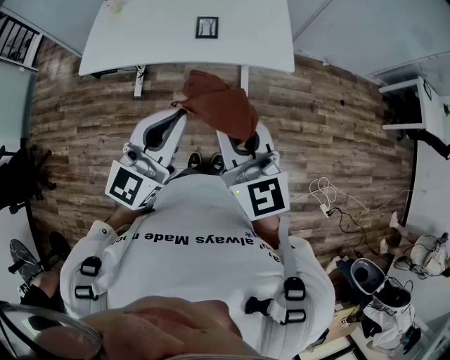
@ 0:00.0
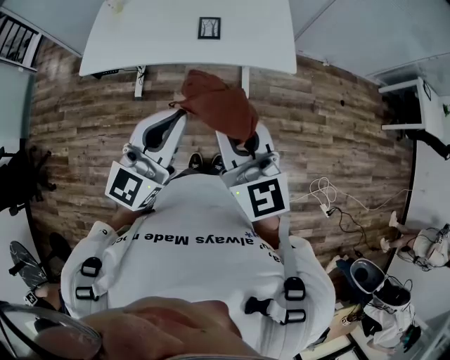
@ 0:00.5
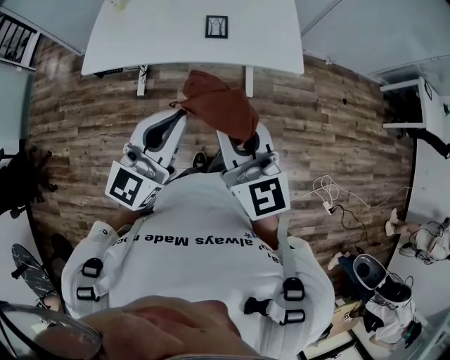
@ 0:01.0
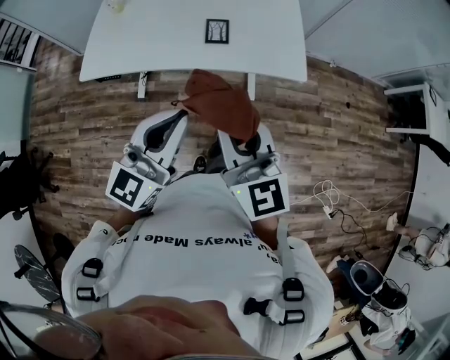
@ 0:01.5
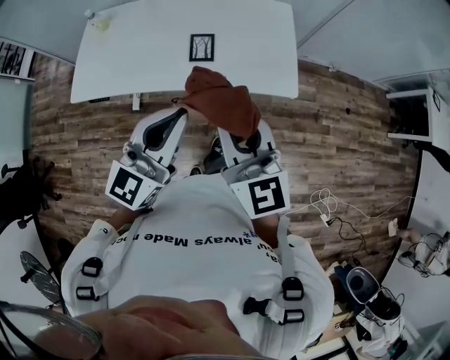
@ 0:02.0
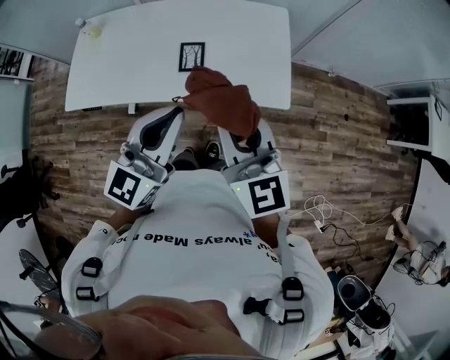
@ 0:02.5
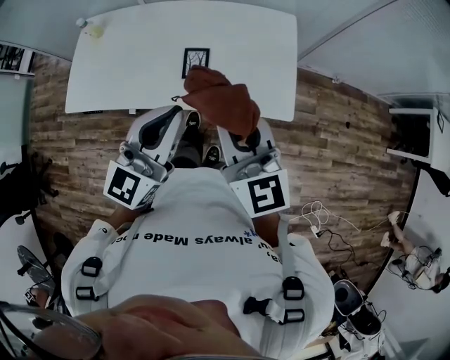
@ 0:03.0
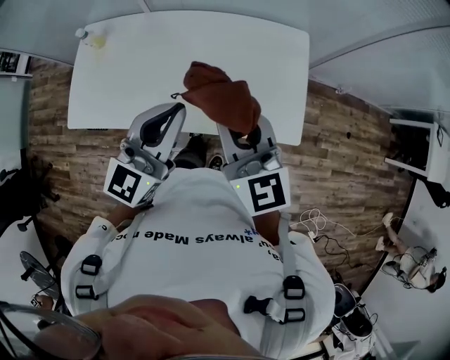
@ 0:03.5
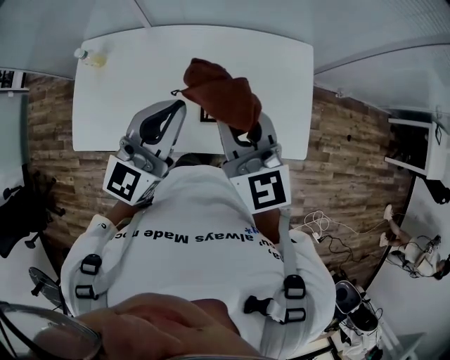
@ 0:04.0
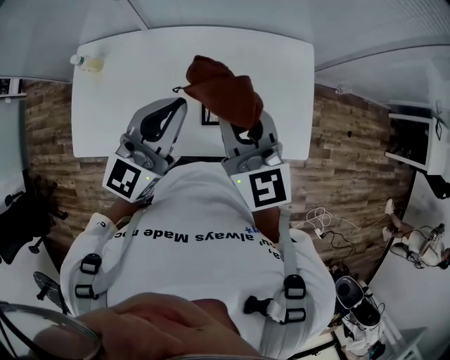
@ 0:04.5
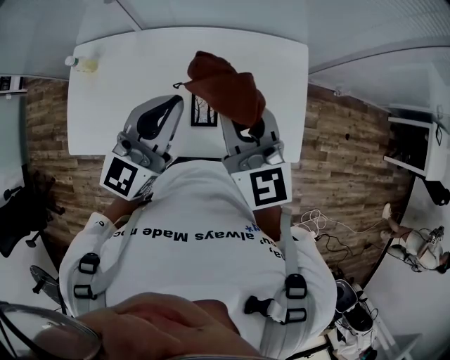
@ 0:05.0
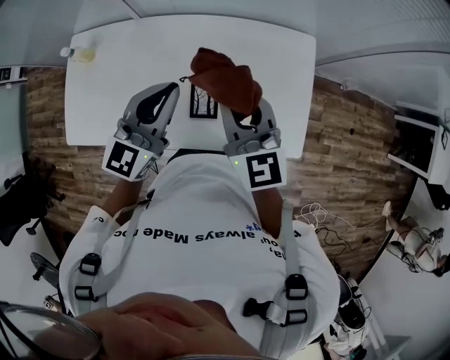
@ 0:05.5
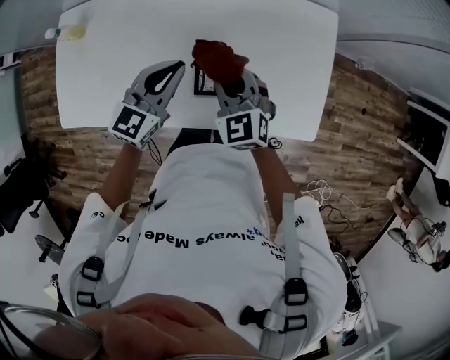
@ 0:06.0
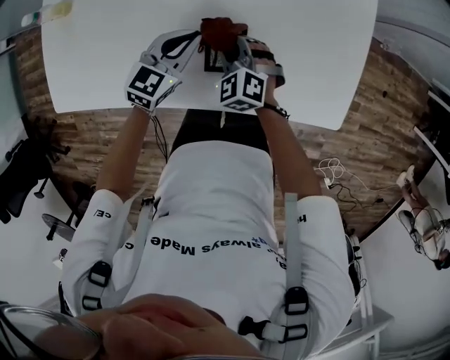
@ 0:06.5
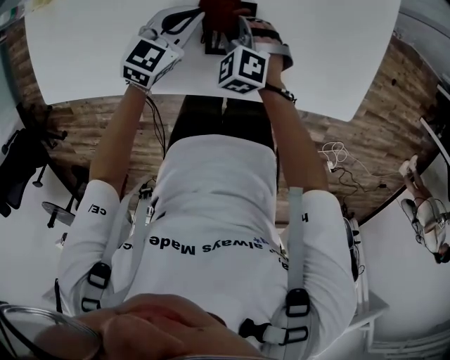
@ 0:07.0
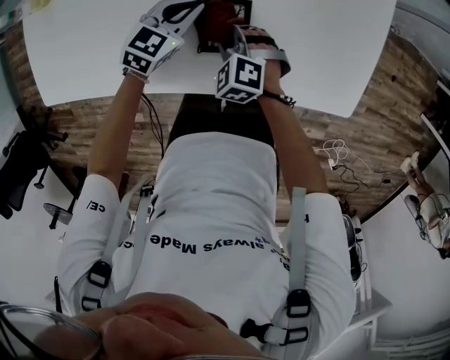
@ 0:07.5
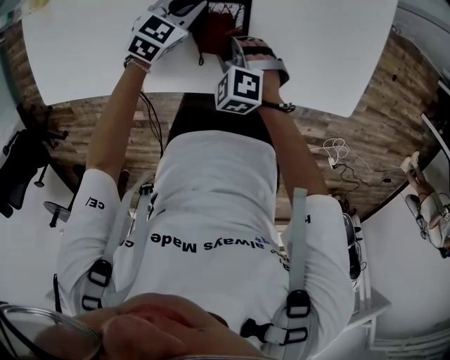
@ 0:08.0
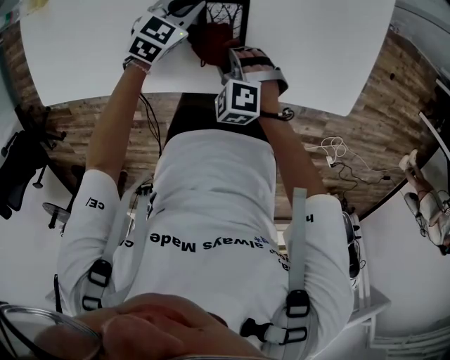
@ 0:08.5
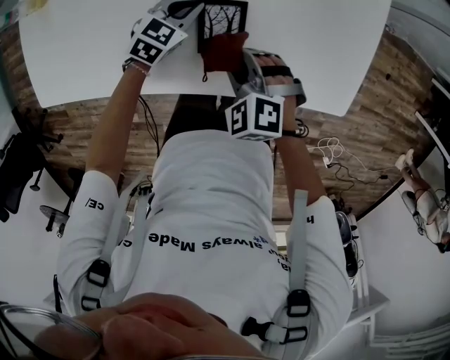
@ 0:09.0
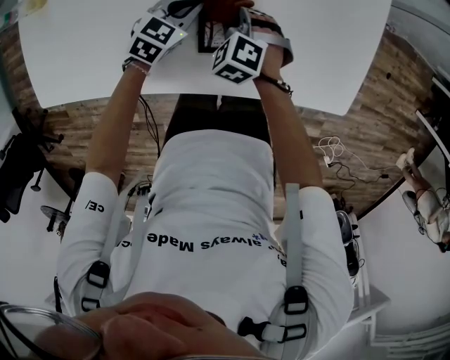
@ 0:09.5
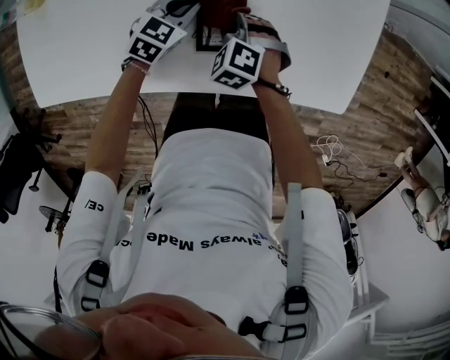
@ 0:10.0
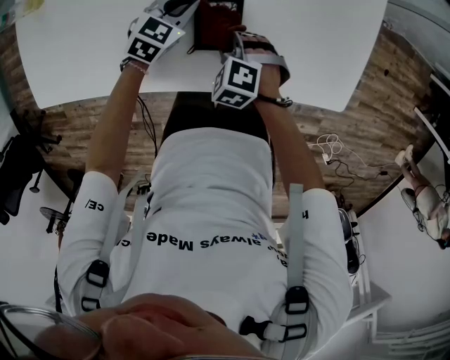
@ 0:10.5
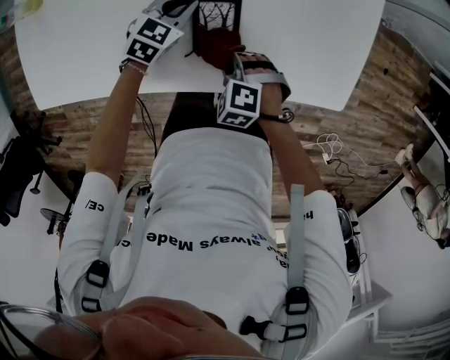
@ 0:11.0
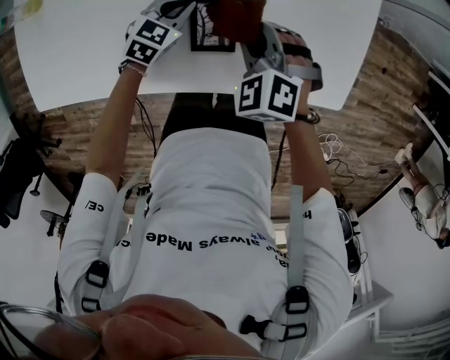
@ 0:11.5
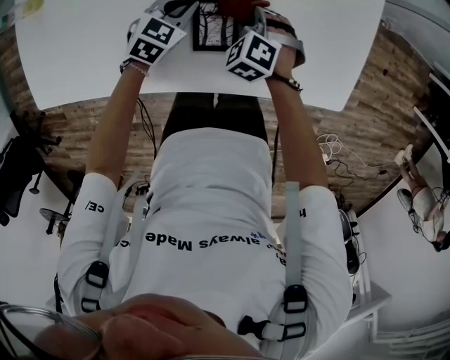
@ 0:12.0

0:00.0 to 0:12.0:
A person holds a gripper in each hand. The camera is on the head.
0:00.0 to 0:02.0: The grippers both shift forward by some 15 cm.
0:02.0 to 0:04.0: The two grippers go roughly 30 cm forward.
0:04.0 to 0:06.0: Both grippers travel together downward, about 20 cm. The right gripper swivels some 30 degrees, while the left gripper rotates about 20 degrees.
0:06.0 to 0:08.0: The right gripper moves downward and backward, about 25 cm, and tips its fingers downward by roughly 30 degrees, while the left gripper goes about 25 cm downward, and changes its angle by about 30 degrees.
0:08.0 to 0:10.0: The right gripper shifts roughly 5 cm forward.
0:10.0 to 0:12.0: The right gripper goes backward and returns, some 10 cm each way.

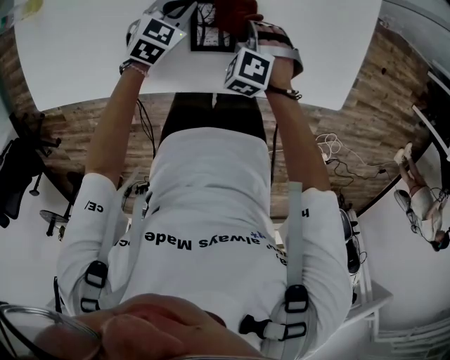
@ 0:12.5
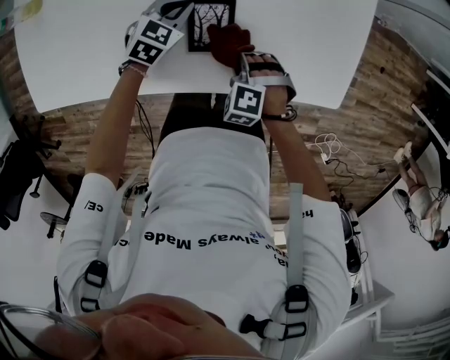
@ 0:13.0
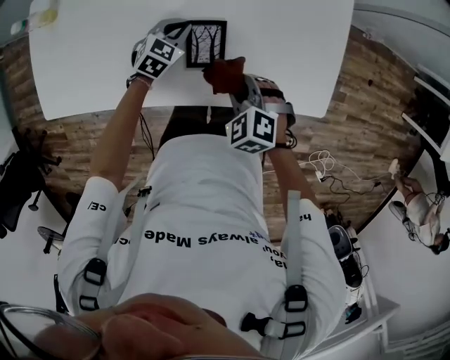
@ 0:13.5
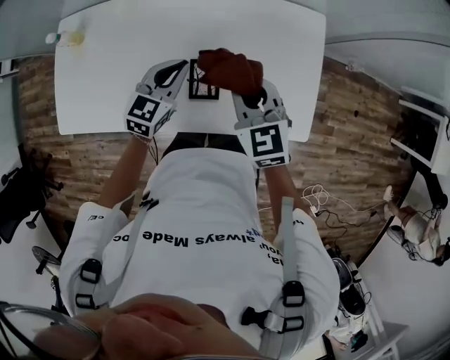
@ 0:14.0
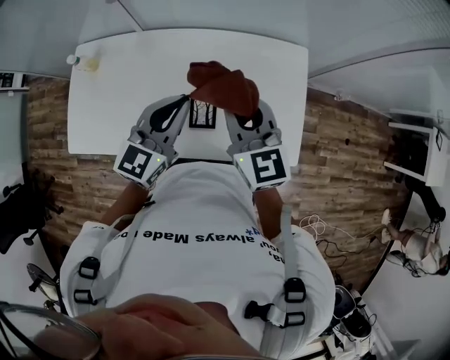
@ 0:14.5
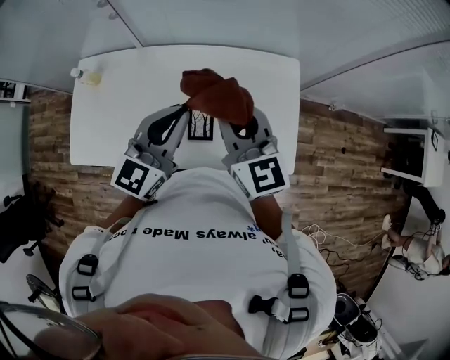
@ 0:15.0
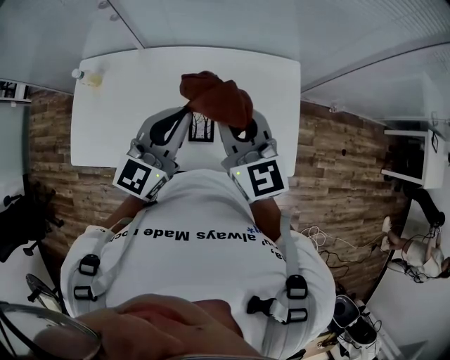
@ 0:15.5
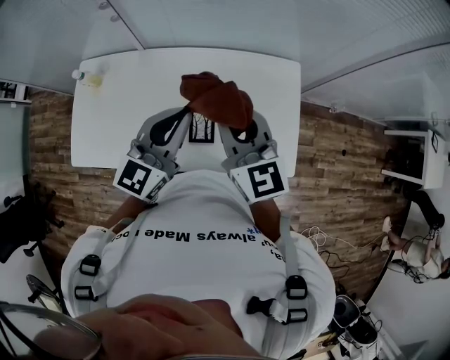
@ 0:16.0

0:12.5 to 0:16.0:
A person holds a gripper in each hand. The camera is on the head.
0:12.5 to 0:14.5: The grippers both shift upward by about 40 cm. The right gripper tilts its fingers roughly 60 degrees upward; the left gripper tilts its fingers approximately 40 degrees upward.
0:14.5 to 0:16.0: The grippers move only a little.

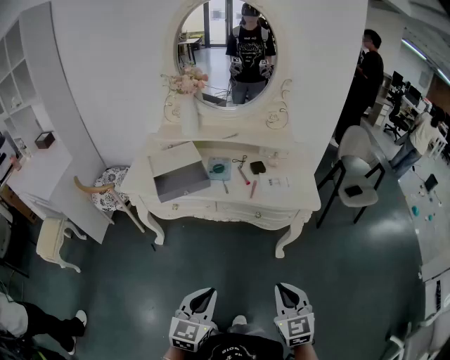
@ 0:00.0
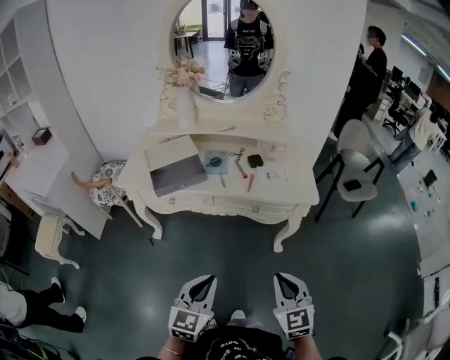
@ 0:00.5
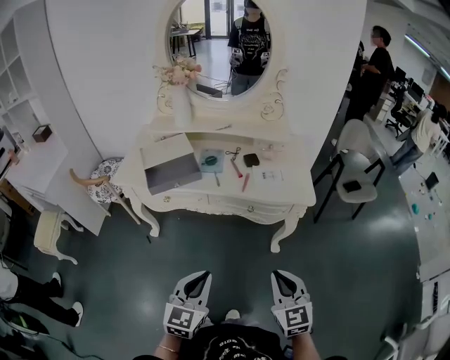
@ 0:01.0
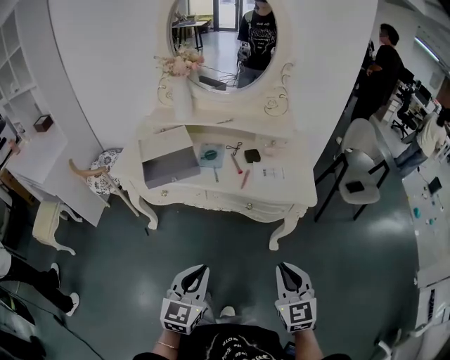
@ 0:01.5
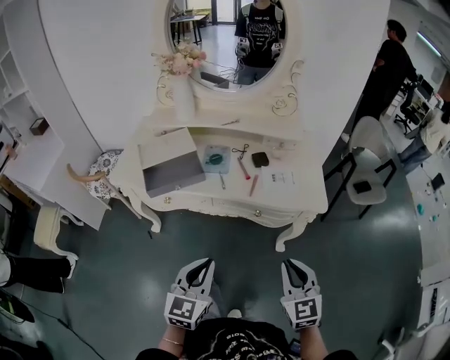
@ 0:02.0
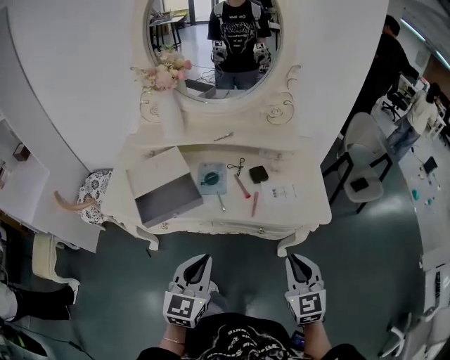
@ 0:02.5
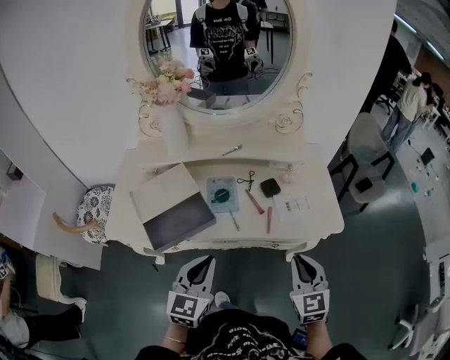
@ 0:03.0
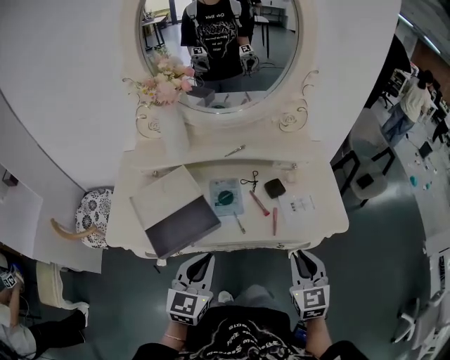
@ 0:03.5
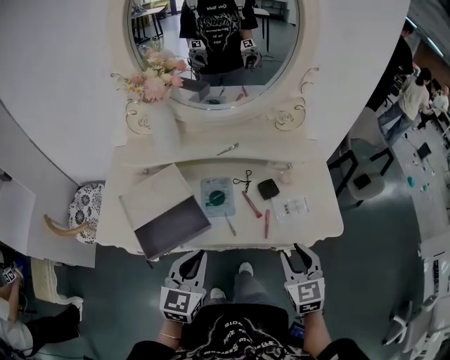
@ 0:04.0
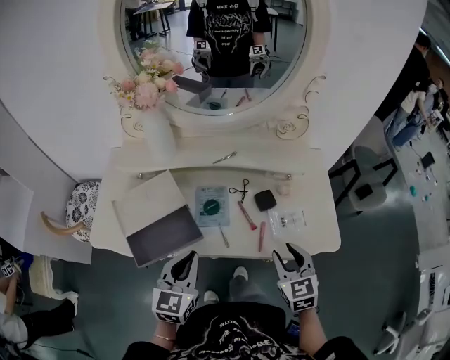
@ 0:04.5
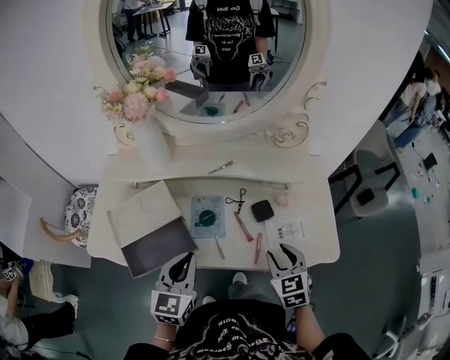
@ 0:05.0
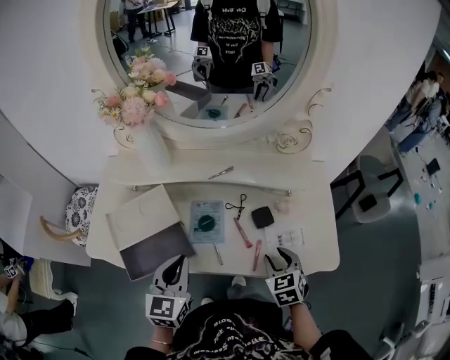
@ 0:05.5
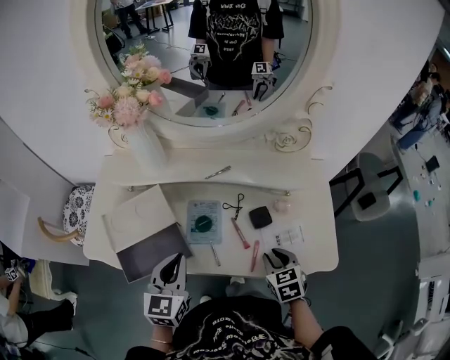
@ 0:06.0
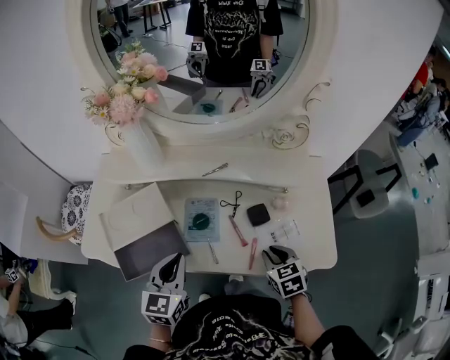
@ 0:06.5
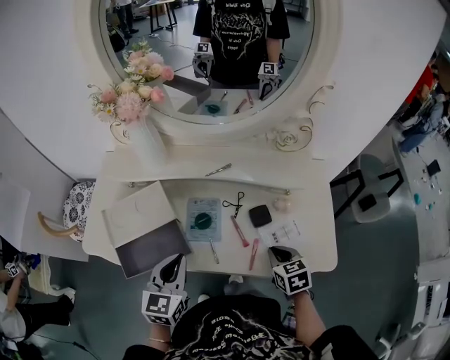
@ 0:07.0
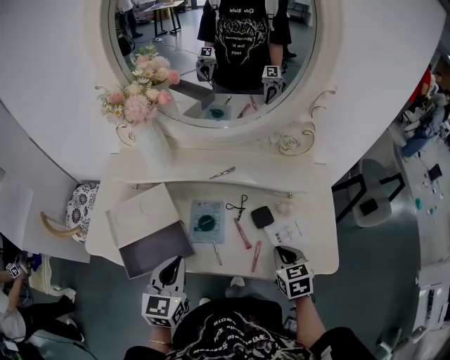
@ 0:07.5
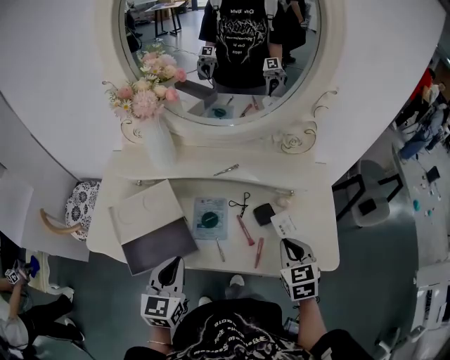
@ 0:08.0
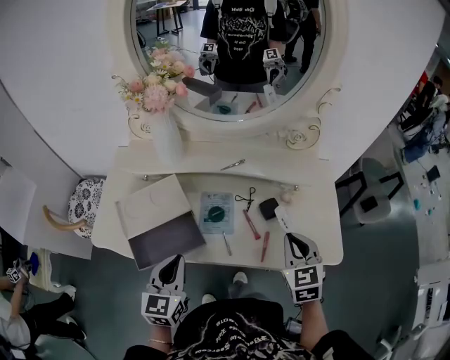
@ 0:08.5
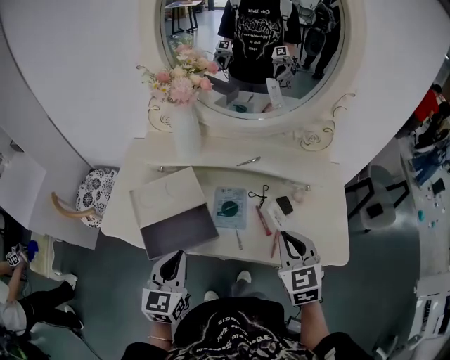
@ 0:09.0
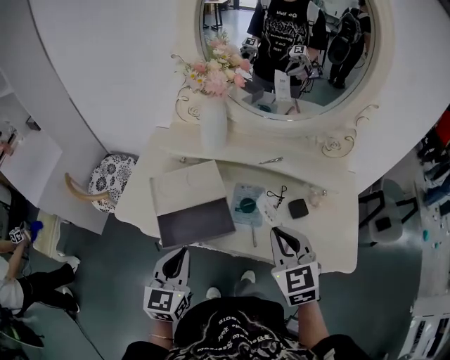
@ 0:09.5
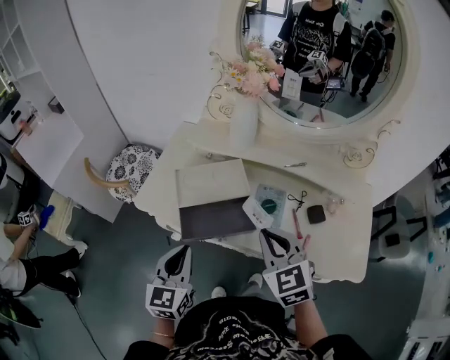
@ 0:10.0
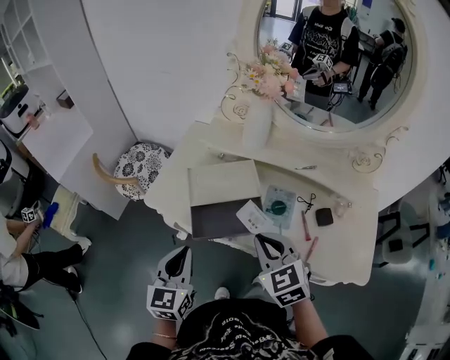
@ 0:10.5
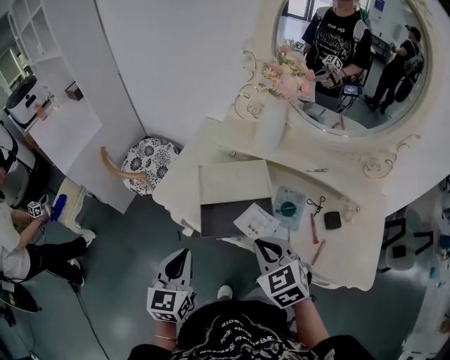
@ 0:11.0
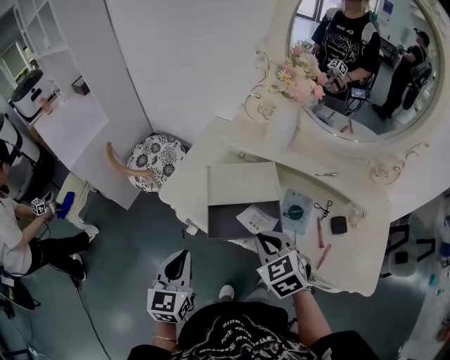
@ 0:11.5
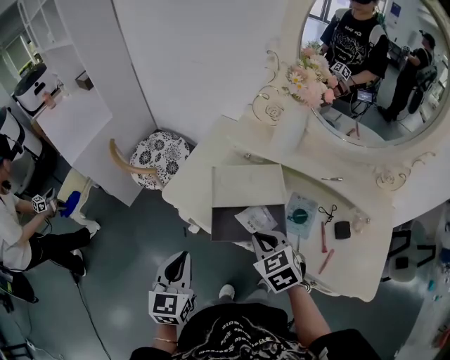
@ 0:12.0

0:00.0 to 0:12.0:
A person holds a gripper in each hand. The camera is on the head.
0:00.0 to 0:02.0: Both grippers move forward, approximately 15 cm.
0:02.0 to 0:04.0: Both grippers travel together forward and to the left, about 20 cm. The right gripper opens.
0:04.0 to 0:06.0: The left gripper is displaced forward by about 10 cm; the right gripper heads forward and downward, covering approximately 15 cm, and swivels approximately 20 degrees.
0:06.0 to 0:08.0: The right gripper travels upward by some 10 cm, and closes up.
0:08.0 to 0:10.0: The left gripper goes roughly 15 cm to the left and backward; the right gripper moves to the left, about 25 cm, and rotates about 30 degrees.
0:10.0 to 0:12.0: The right gripper moves to the left and downward, some 15 cm, and rotates some 20 degrees, while the left gripper travels to the left by some 10 cm.
